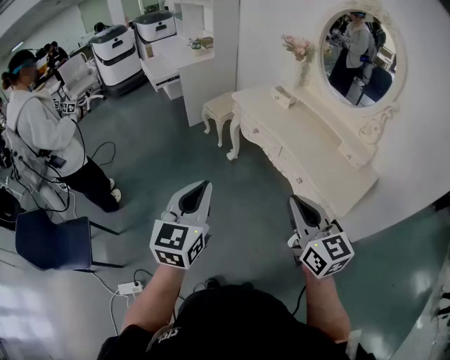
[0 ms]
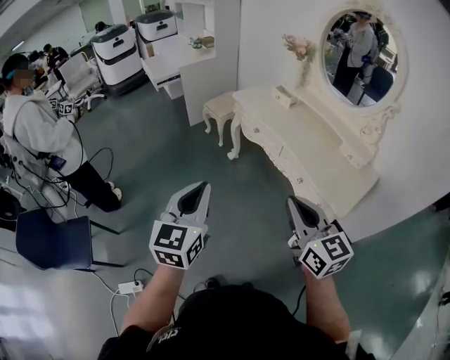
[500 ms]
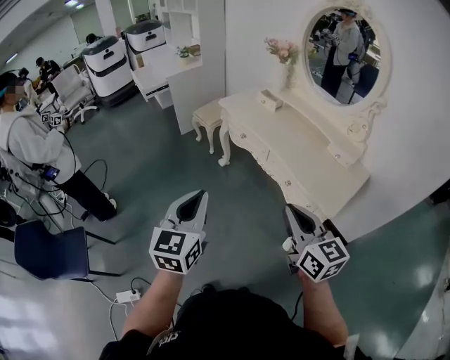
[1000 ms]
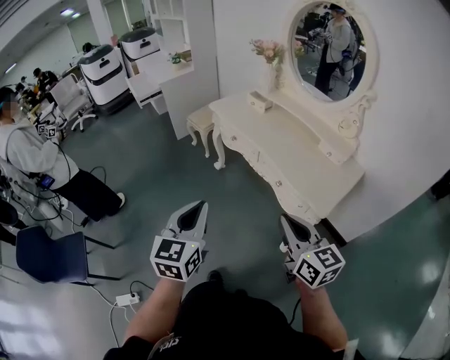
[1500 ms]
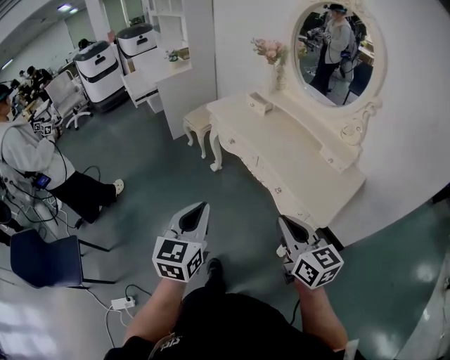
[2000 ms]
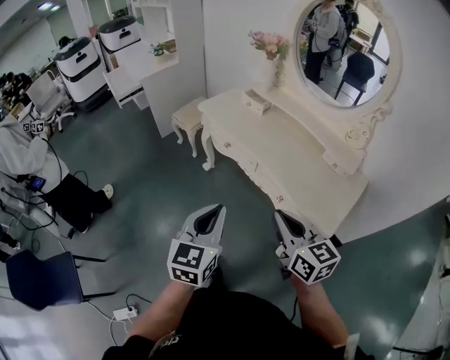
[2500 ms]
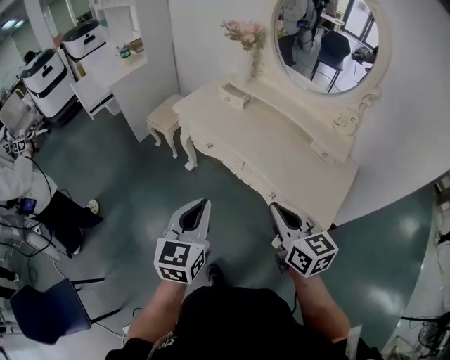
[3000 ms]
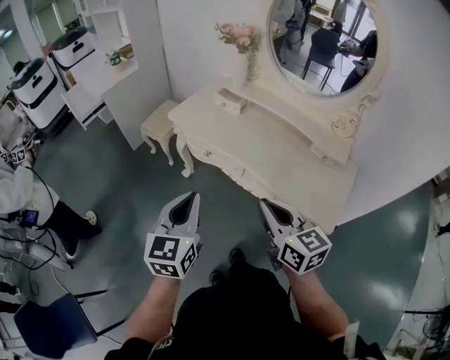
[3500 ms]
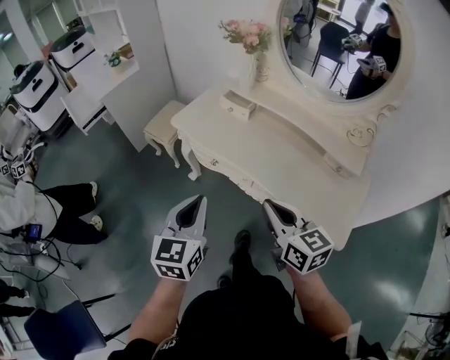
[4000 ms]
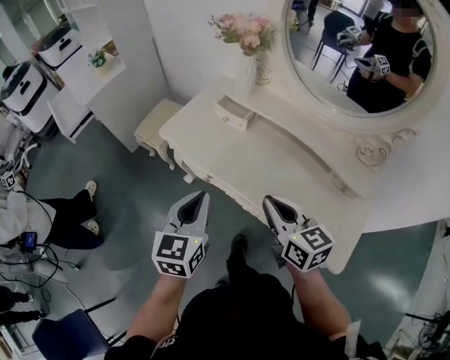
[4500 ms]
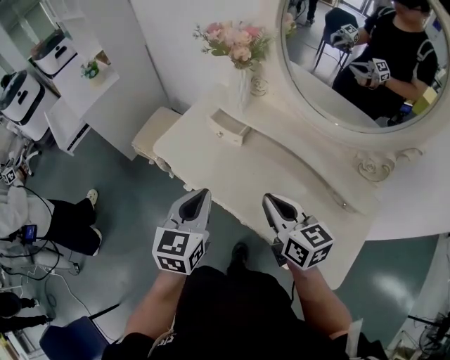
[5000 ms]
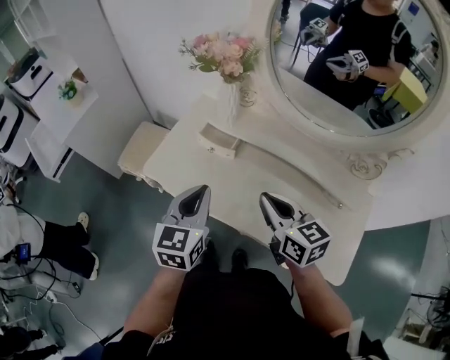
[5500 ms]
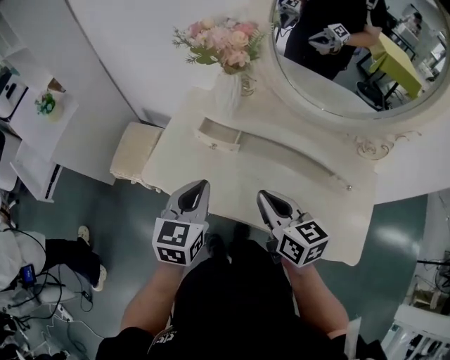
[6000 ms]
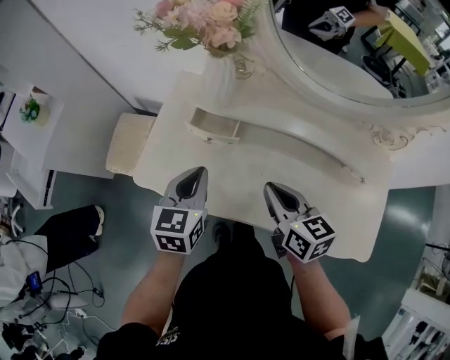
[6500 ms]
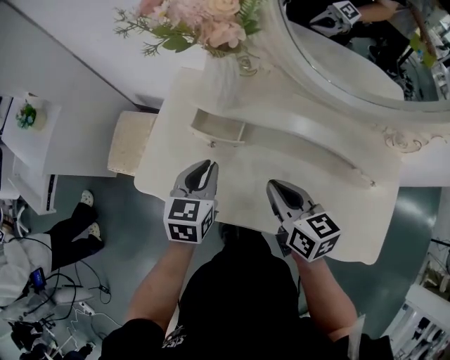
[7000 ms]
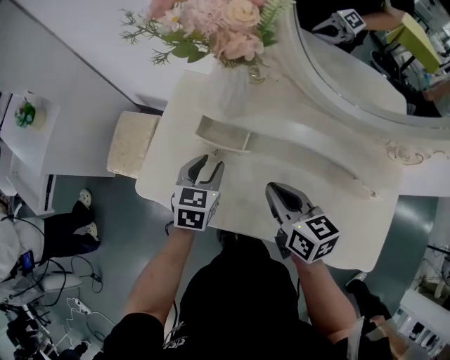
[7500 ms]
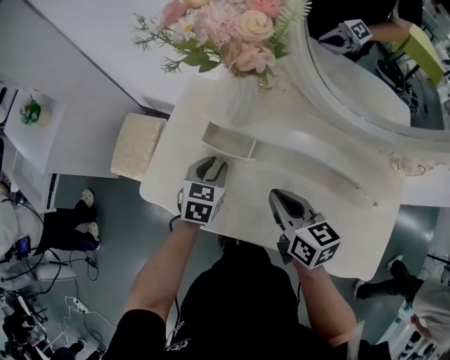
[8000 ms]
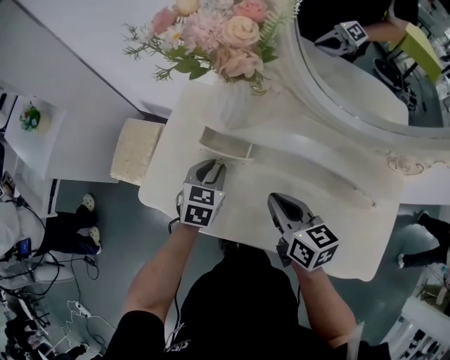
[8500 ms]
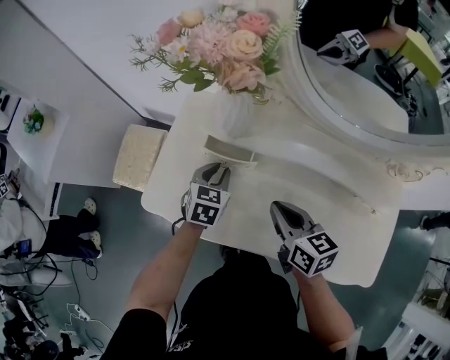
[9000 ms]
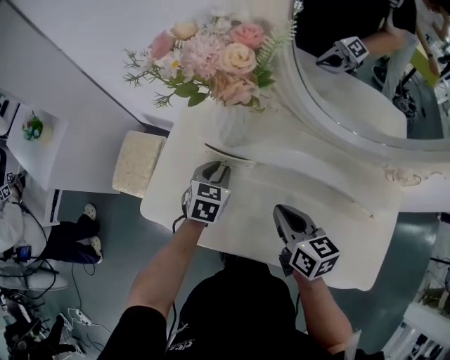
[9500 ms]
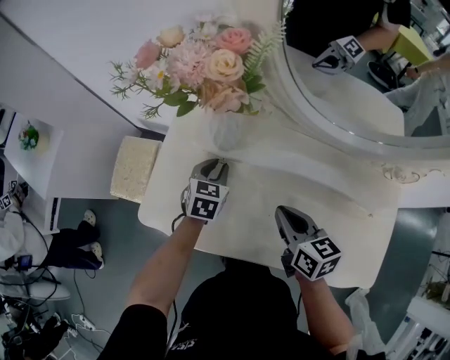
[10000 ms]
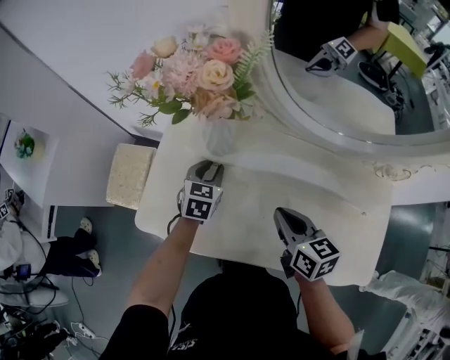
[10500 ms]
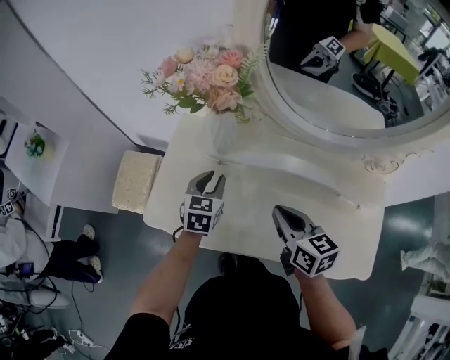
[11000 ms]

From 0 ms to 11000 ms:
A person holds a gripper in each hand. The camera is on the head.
From 0 ms to 2000 ms: Both grippers travel together to the right and downward, about 10 cm.
From 2000 ms to 3500 ms: Both grippers move forward, roughly 20 cm.
From 3500 ms to 5500 ms: Both grippers move forward, approximately 35 cm.
From 5500 ms to 7500 ms: The right gripper heads downward and forward, covering roughly 15 cm; the left gripper travels downward and forward by some 25 cm, turns by approximately 20 degrees, and opens its fingers.
From 7500 ms to 9000 ms: The grippers make only small movements.
From 9000 ms to 11000 ms: Both grippers move upward, some 5 cm.

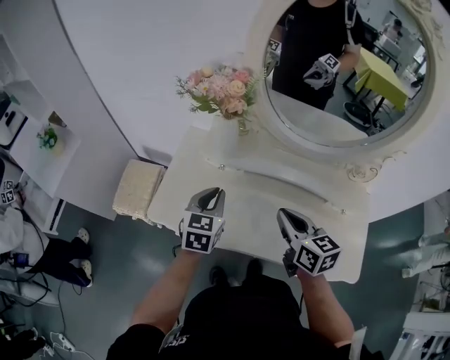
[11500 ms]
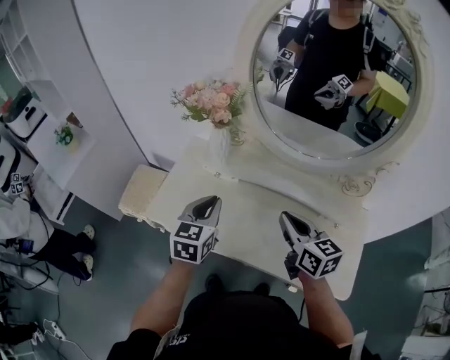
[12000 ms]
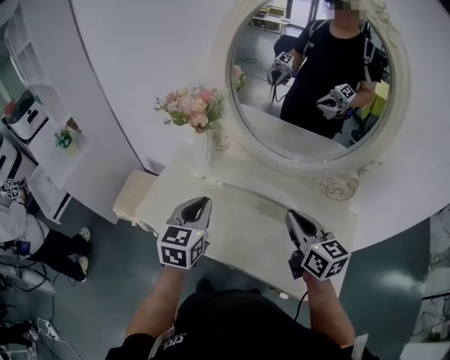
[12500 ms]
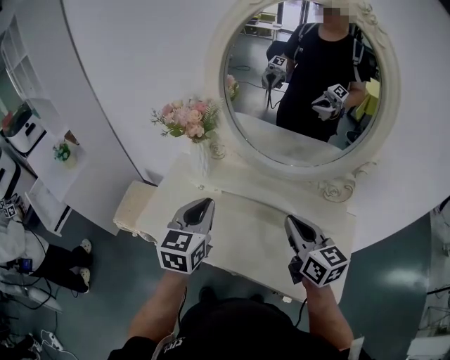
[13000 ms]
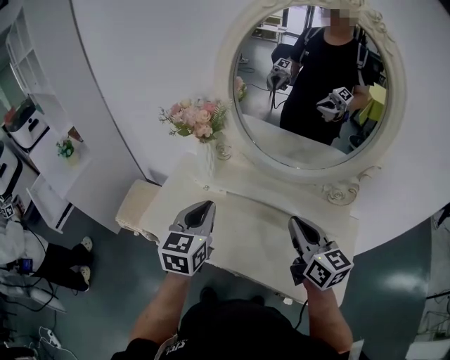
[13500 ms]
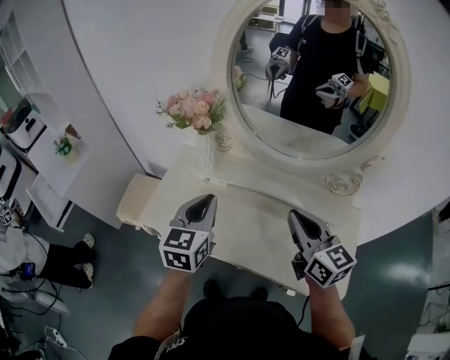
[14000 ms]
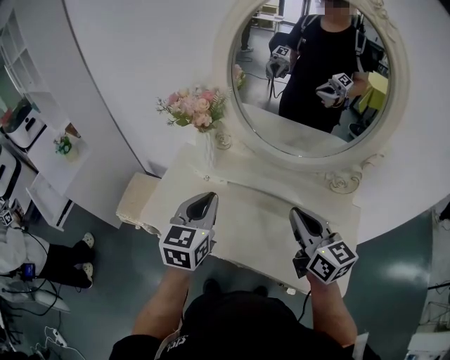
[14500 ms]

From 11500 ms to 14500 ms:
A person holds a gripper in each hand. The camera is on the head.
From 11500 ms to 13000 ms: The left gripper goes approximately 15 cm upward, to the right and backward, while the right gripper heads to the right and upward, covering roughly 15 cm.
From 13000 ms to 14500 ms: The grippers make only small movements.

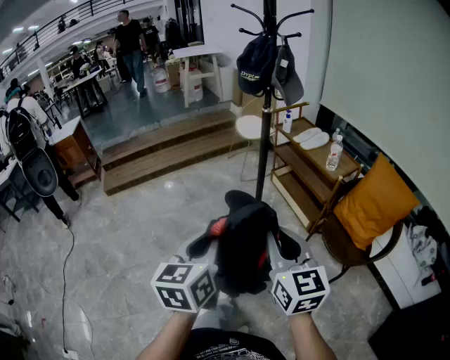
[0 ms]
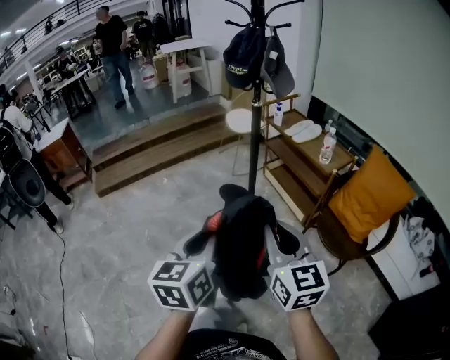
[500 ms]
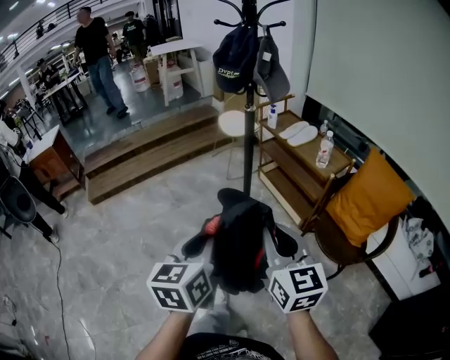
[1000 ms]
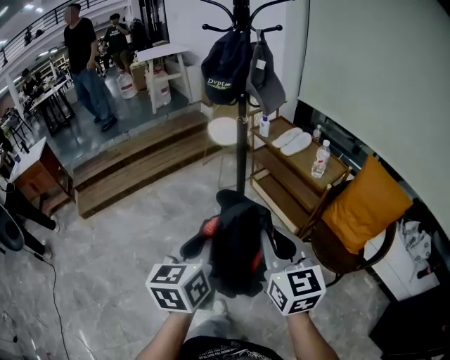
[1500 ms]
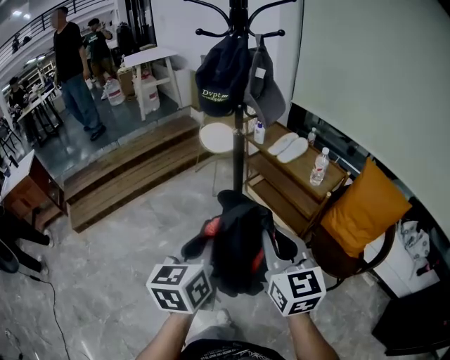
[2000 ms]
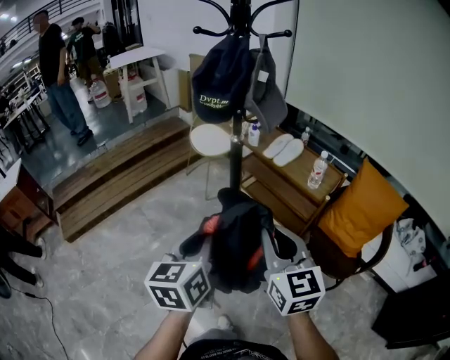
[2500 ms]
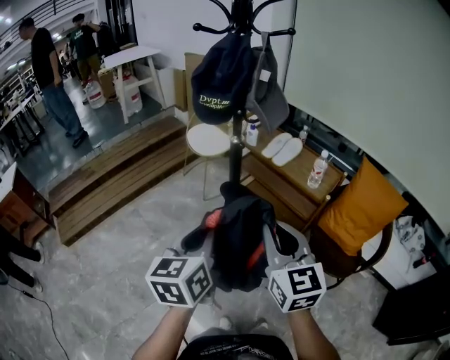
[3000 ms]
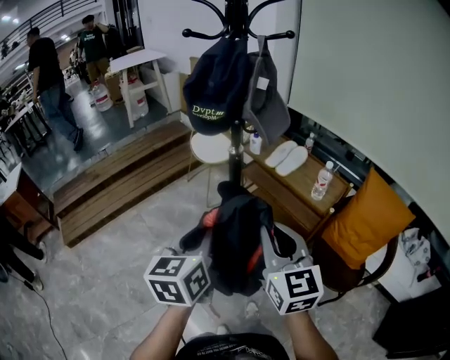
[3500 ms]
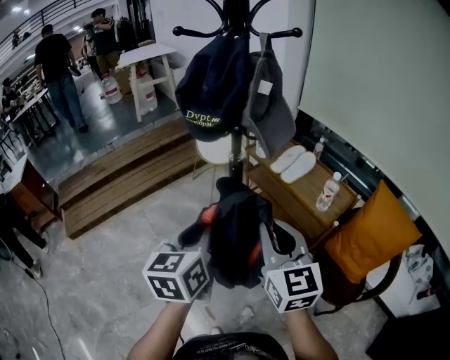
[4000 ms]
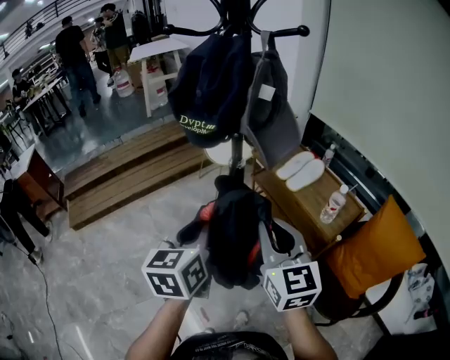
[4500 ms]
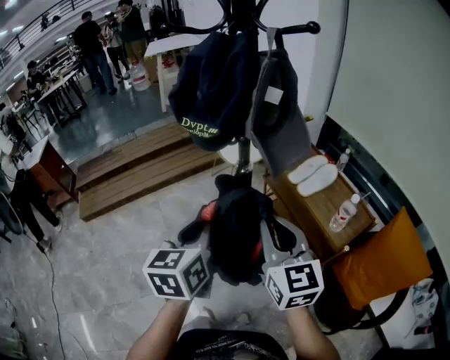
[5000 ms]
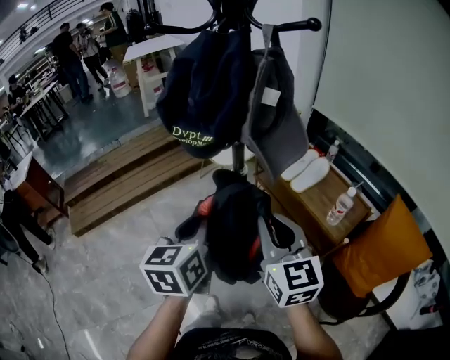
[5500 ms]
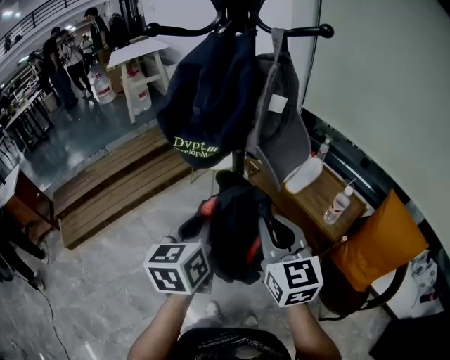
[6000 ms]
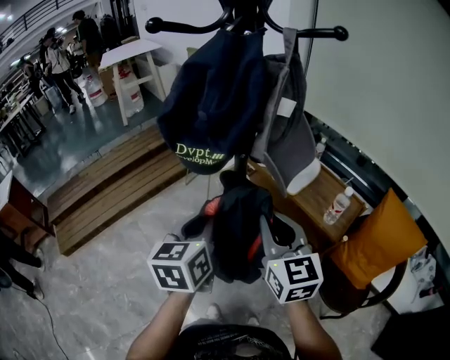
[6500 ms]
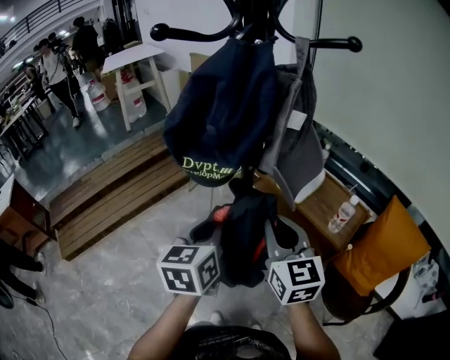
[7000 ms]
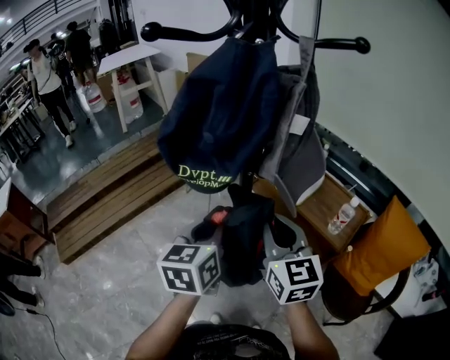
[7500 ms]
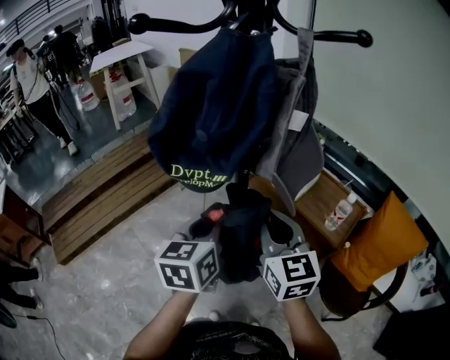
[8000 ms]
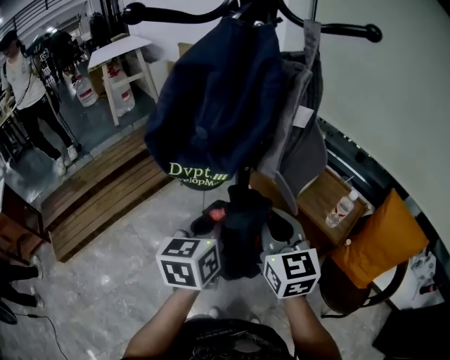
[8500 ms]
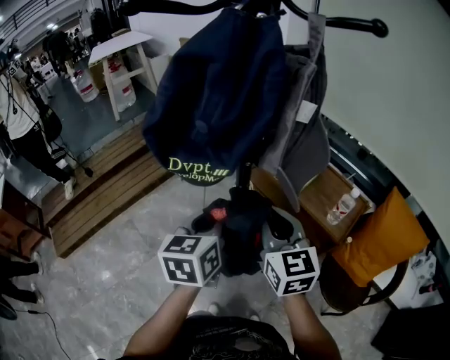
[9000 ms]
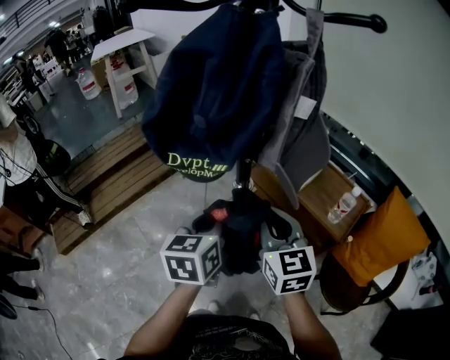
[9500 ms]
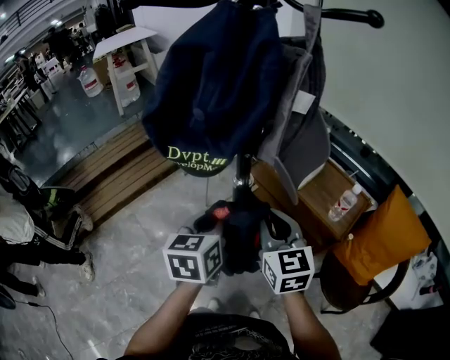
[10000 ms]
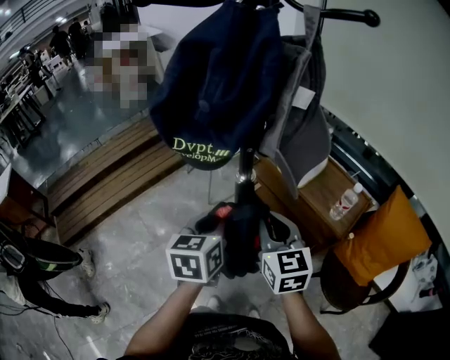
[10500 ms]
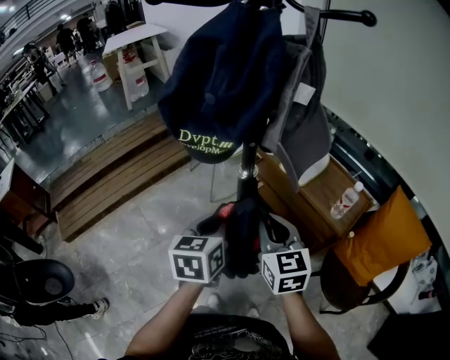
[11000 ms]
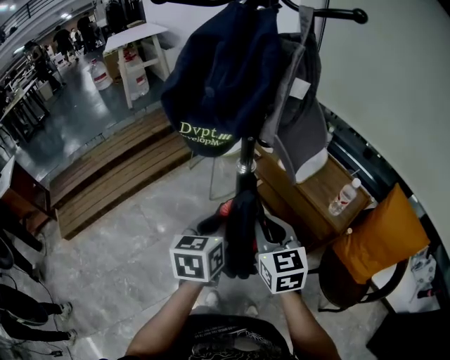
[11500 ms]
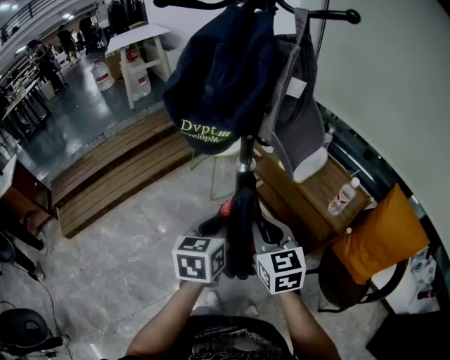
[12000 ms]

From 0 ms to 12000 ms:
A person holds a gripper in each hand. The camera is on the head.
From 0 ms to 2000 ms: The two grippers go some 25 cm forward.
From 2000 ms to 4000 ms: The two grippers go roughly 20 cm forward.
From 4000 ms to 6000 ms: Both grippers move forward, about 15 cm.
From 6000 ms to 8000 ms: Both grippers travel together forward, some 10 cm.
From 8000 ms to 10000 ms: The right gripper is displaced downward by some 5 cm.
From 10000 ms to 12000 ms: The grippers both shift backward by about 5 cm.

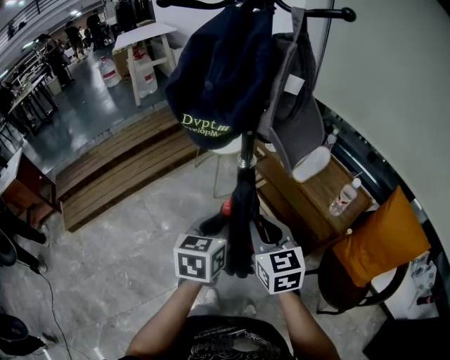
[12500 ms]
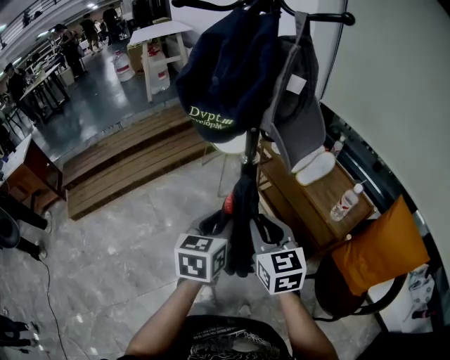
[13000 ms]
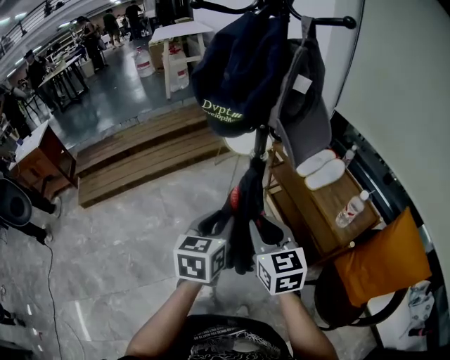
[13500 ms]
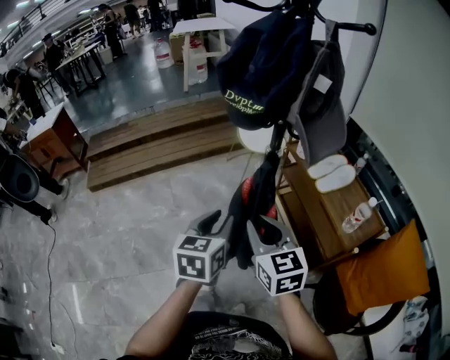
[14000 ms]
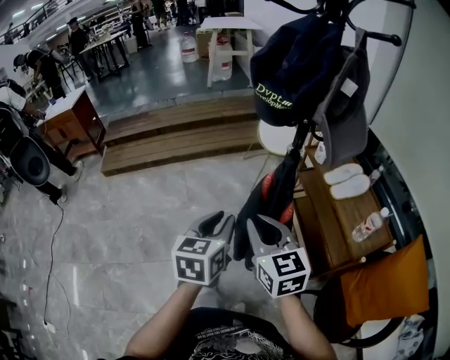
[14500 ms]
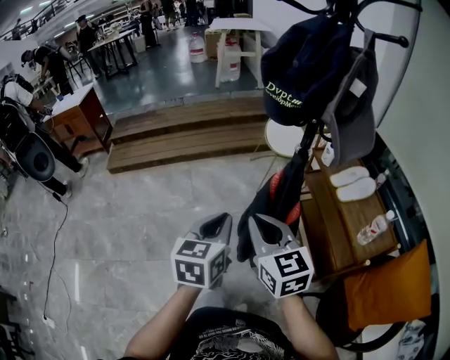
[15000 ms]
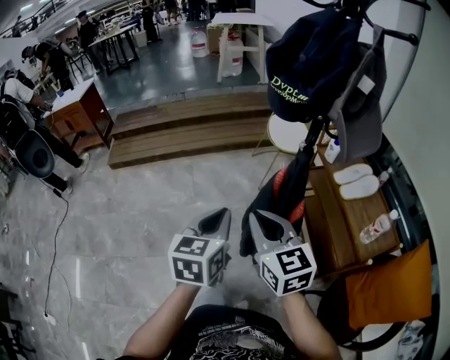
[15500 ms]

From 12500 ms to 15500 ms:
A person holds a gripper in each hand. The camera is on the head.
From 12500 ms to 14000 ms: Both grippers move backward, about 5 cm.
From 14000 ms to 15500 ms: Both grippers travel together to the left, approximately 5 cm. The left gripper closes.
